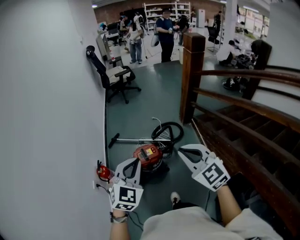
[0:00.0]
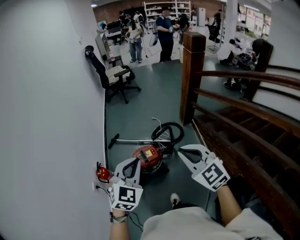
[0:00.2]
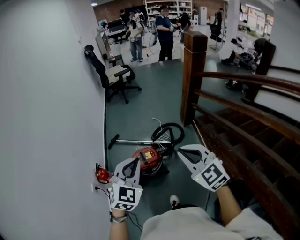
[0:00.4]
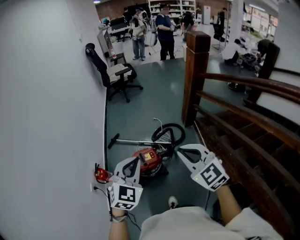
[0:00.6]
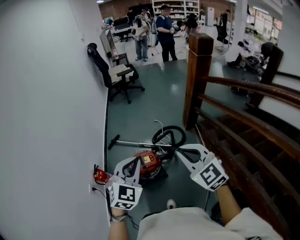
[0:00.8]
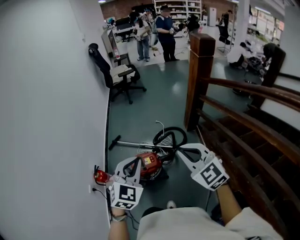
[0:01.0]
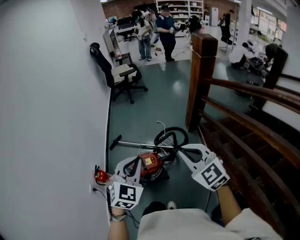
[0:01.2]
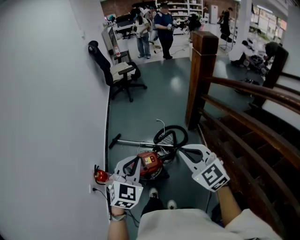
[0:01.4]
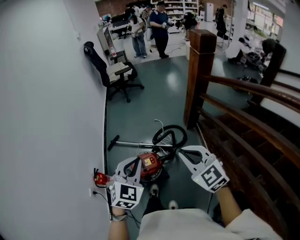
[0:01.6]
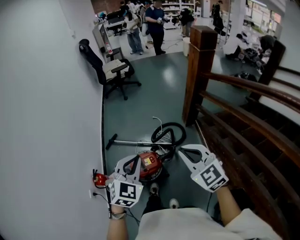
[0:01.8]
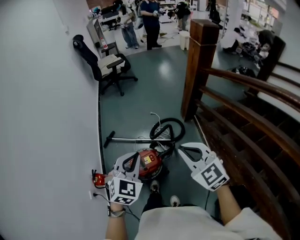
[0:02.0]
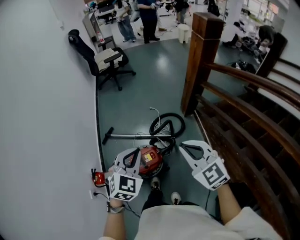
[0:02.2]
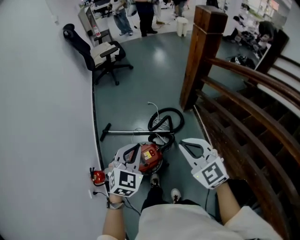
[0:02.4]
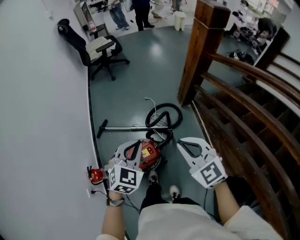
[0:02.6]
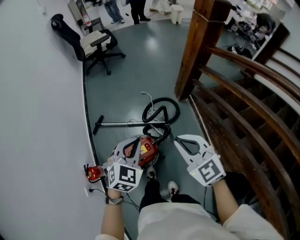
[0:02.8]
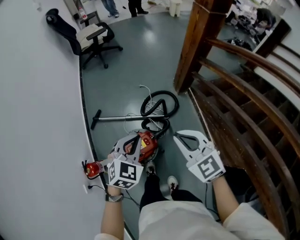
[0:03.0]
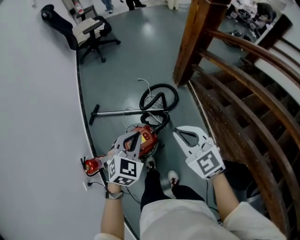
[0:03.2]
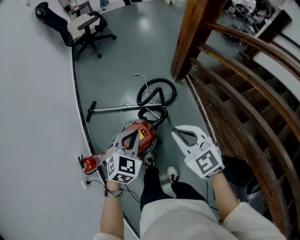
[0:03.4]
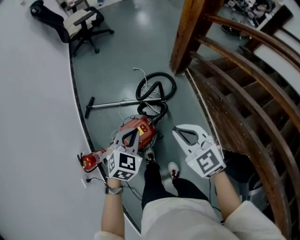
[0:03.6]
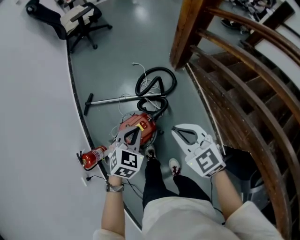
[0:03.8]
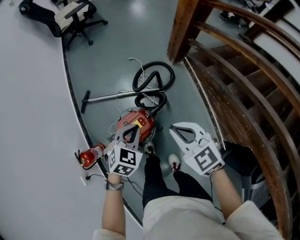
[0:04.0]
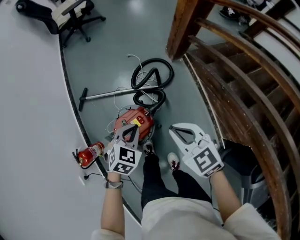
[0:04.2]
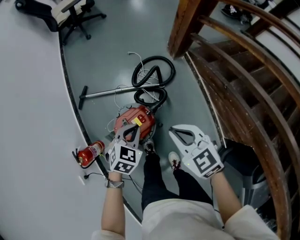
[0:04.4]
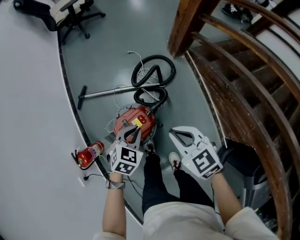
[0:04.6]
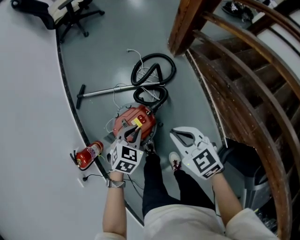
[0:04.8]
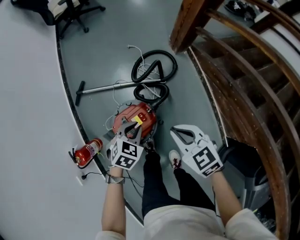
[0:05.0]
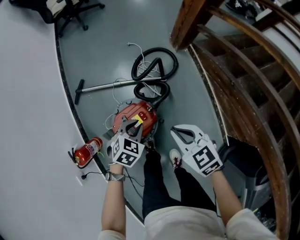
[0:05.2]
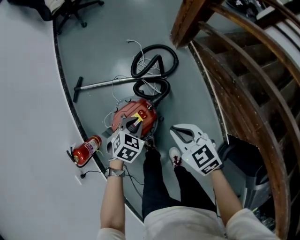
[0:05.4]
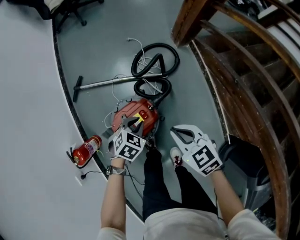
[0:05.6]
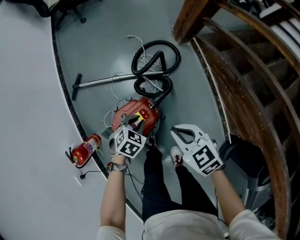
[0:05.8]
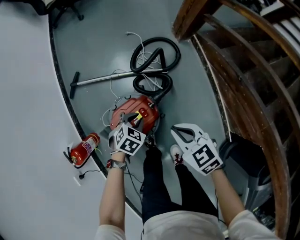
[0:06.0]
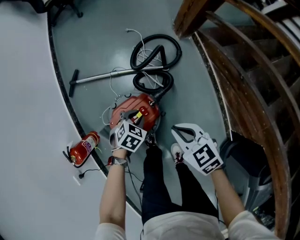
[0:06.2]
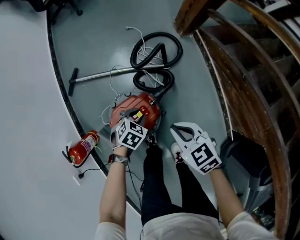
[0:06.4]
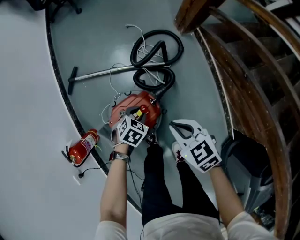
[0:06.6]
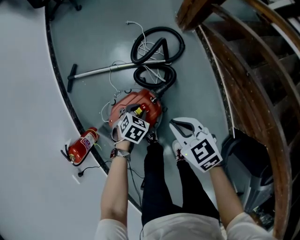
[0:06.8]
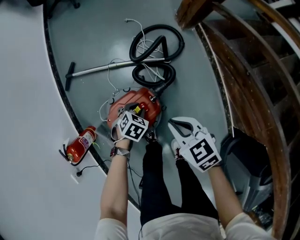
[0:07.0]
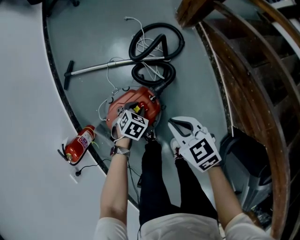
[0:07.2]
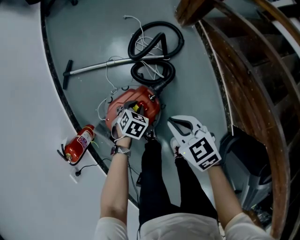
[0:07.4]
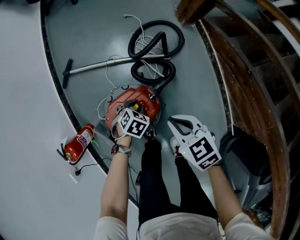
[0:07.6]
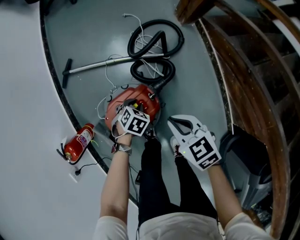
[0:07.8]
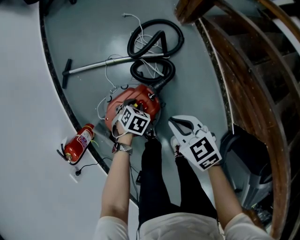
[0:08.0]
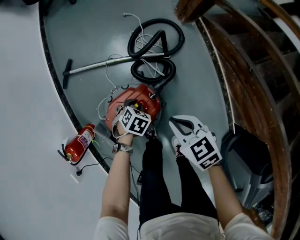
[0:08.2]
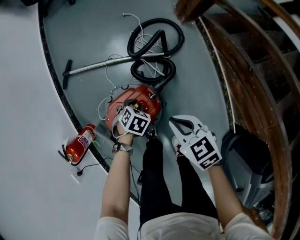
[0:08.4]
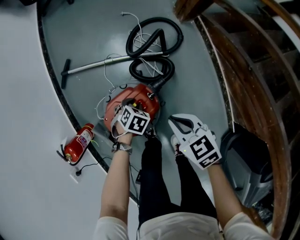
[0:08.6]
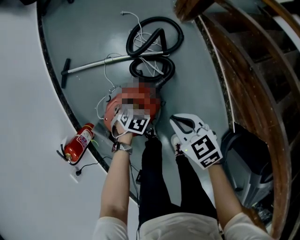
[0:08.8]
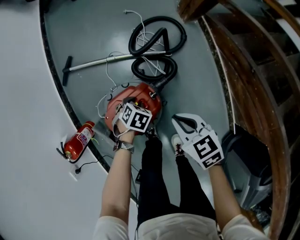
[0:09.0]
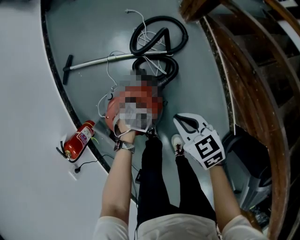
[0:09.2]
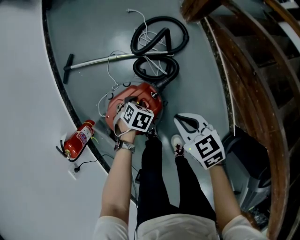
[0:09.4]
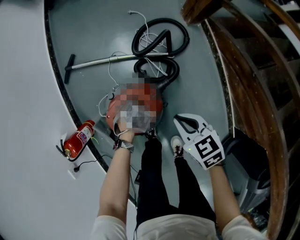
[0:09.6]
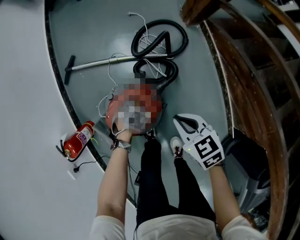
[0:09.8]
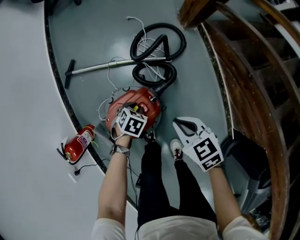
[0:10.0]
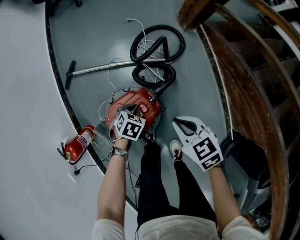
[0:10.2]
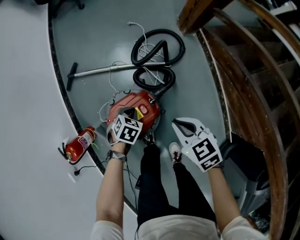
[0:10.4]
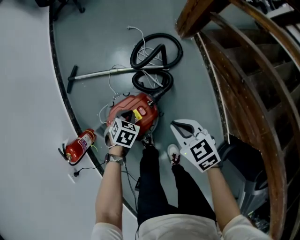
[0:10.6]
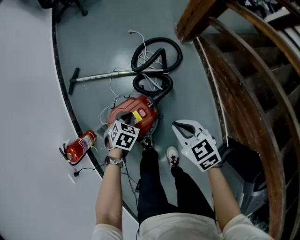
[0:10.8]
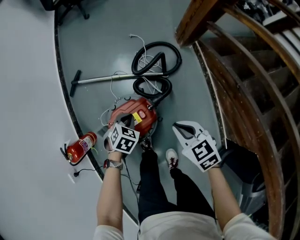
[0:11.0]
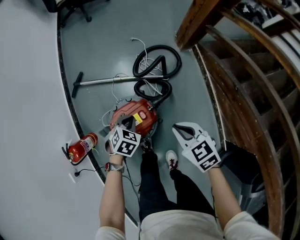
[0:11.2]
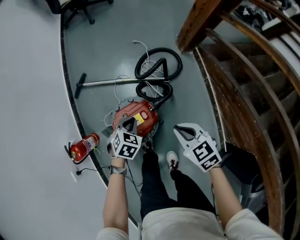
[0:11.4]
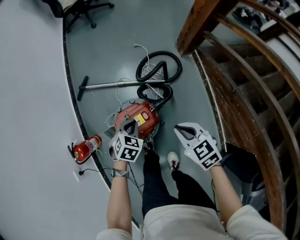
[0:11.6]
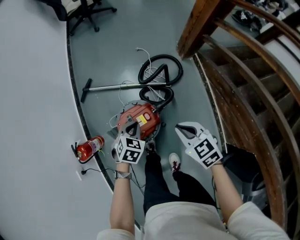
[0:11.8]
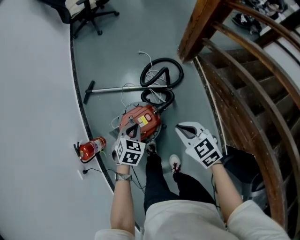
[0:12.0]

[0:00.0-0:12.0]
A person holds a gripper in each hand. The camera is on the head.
0:00.0 to 0:01.6: Both grippers travel together forward and to the right, approximately 15 cm.
0:01.6 to 0:03.0: Both grippers move forward and downward, roughly 20 cm.
0:03.0 to 0:04.4: The two grippers go about 20 cm downward.
0:04.4 to 0:06.0: Both grippers travel together downward, approximately 20 cm.
0:06.0 to 0:07.6: The right gripper heads downward, covering roughly 5 cm, while the left gripper goes about 10 cm downward.
0:07.6 to 0:09.0: The grippers move only a little.
0:09.0 to 0:10.4: The left gripper moves approximately 5 cm, and closes.
0:10.4 to 0:12.0: The right gripper shifts some 15 cm upward; the left gripper goes roughly 20 cm upward.

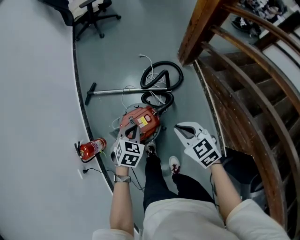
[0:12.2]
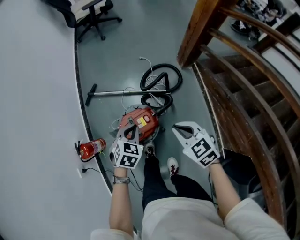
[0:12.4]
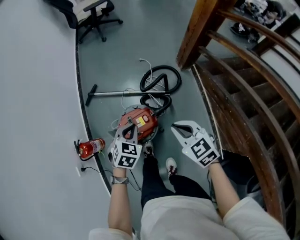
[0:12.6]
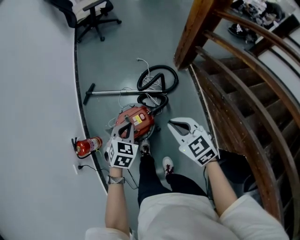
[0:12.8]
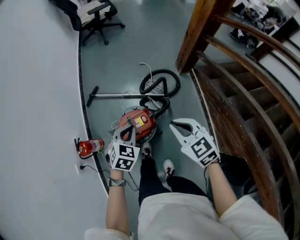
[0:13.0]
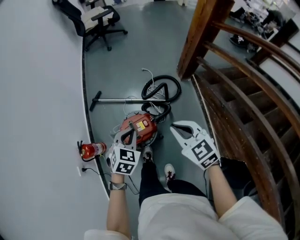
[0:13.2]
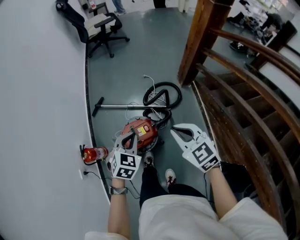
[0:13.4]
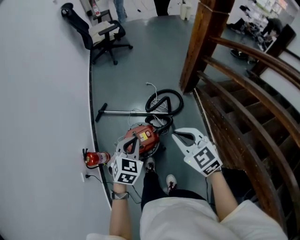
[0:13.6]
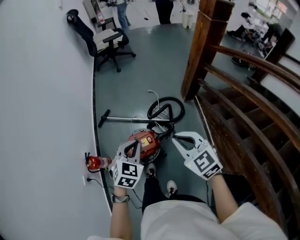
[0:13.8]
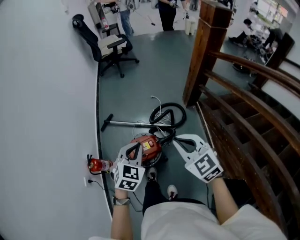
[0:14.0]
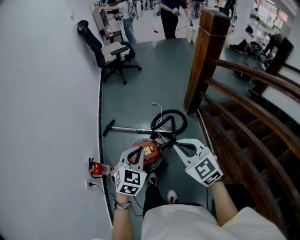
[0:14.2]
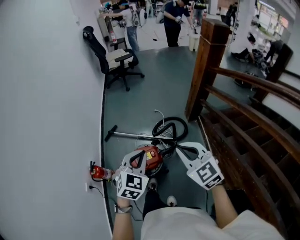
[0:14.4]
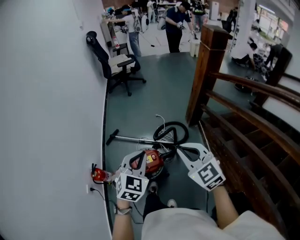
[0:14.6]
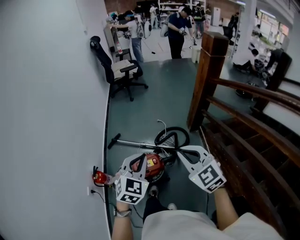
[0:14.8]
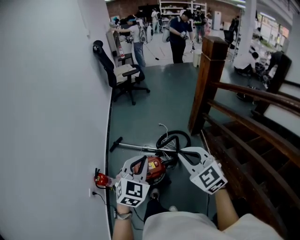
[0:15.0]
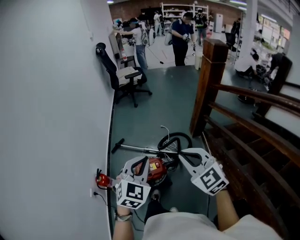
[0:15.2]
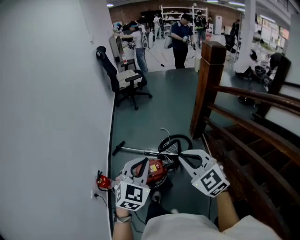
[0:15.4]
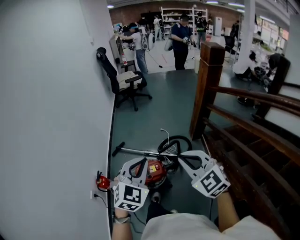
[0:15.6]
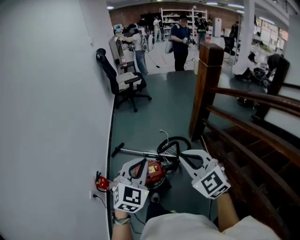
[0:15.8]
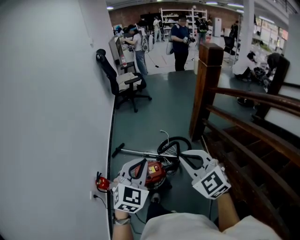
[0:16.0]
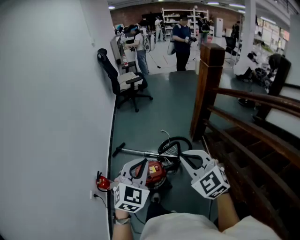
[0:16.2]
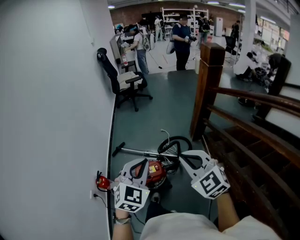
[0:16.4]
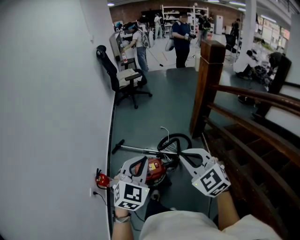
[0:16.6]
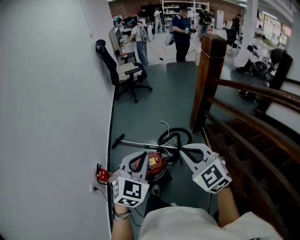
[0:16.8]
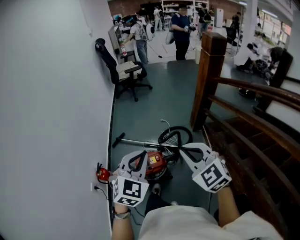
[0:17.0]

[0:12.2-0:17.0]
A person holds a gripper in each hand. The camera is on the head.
0:12.2 to 0:13.8: The grippers both shift upward by some 20 cm. The right gripper swivels approximately 20 degrees.
0:13.8 to 0:15.4: Both grippers move upward and backward, some 20 cm. The left gripper swivels approximately 20 degrees.
0:15.4 to 0:17.0: The grippers stay close to where they were, moving slightly.

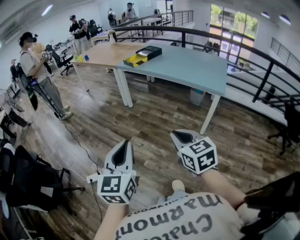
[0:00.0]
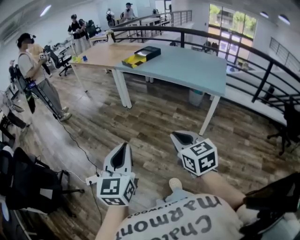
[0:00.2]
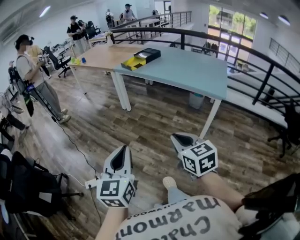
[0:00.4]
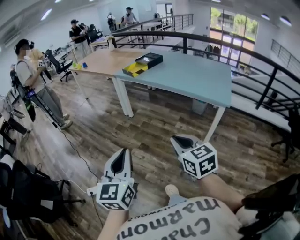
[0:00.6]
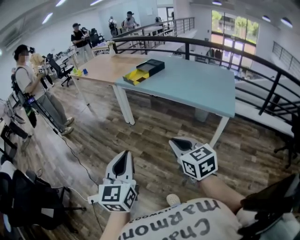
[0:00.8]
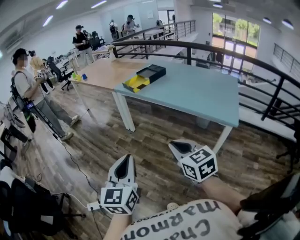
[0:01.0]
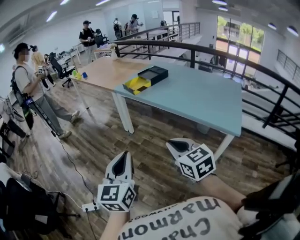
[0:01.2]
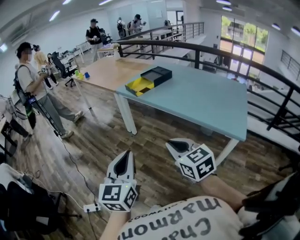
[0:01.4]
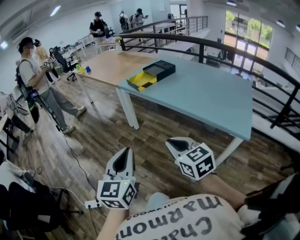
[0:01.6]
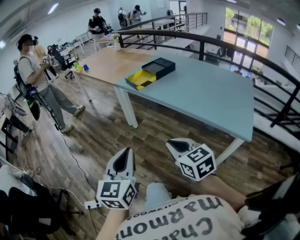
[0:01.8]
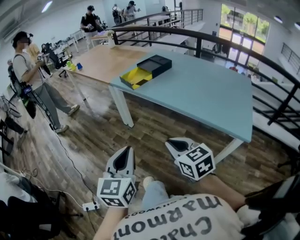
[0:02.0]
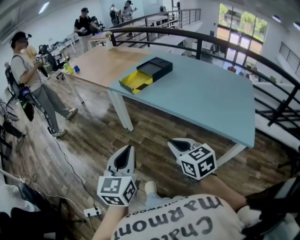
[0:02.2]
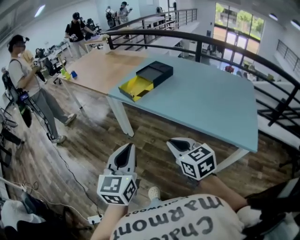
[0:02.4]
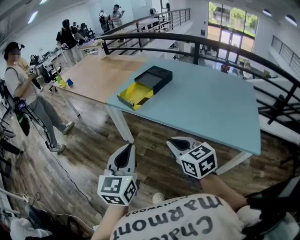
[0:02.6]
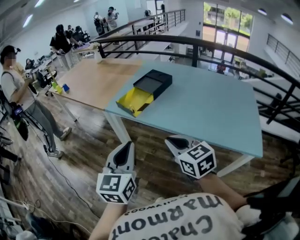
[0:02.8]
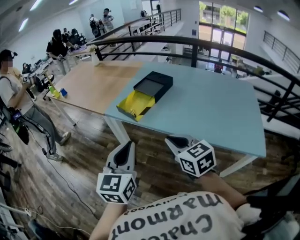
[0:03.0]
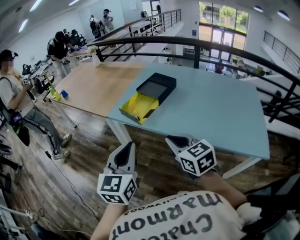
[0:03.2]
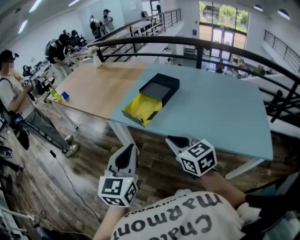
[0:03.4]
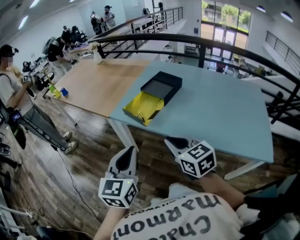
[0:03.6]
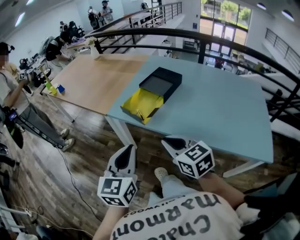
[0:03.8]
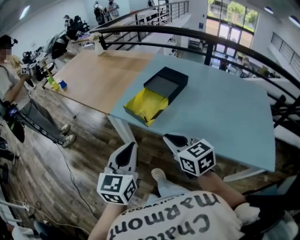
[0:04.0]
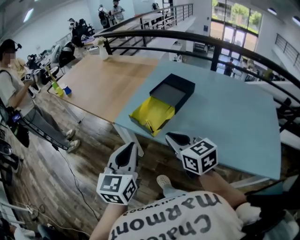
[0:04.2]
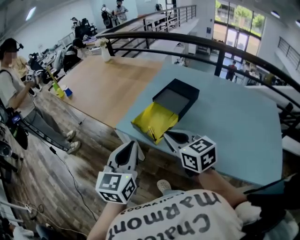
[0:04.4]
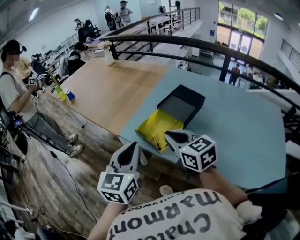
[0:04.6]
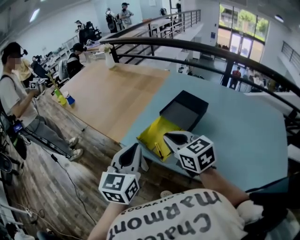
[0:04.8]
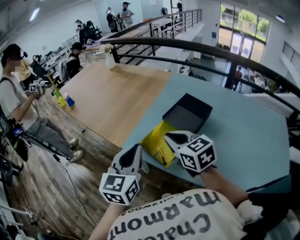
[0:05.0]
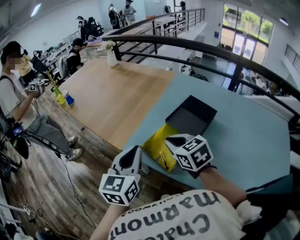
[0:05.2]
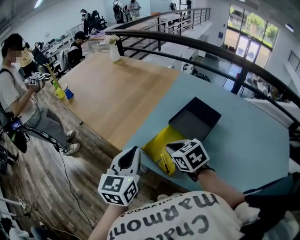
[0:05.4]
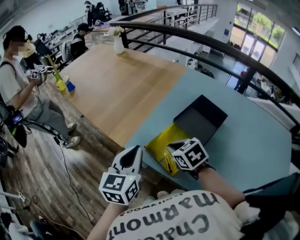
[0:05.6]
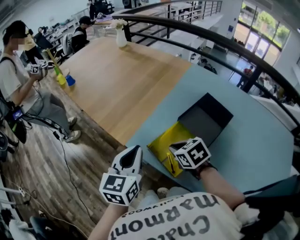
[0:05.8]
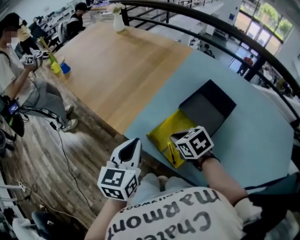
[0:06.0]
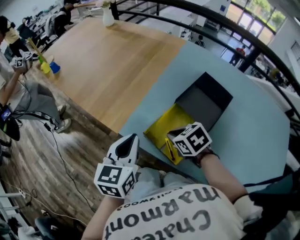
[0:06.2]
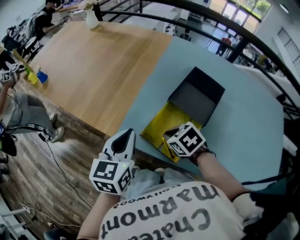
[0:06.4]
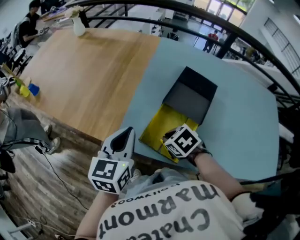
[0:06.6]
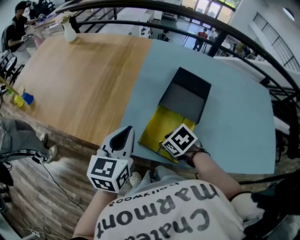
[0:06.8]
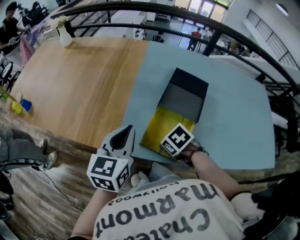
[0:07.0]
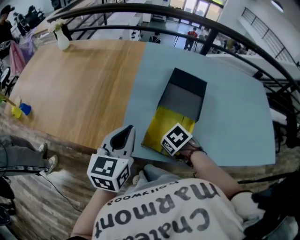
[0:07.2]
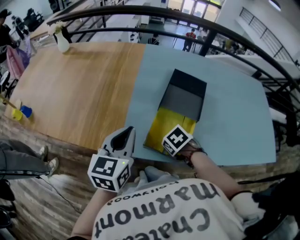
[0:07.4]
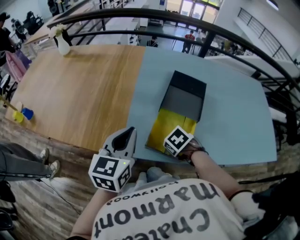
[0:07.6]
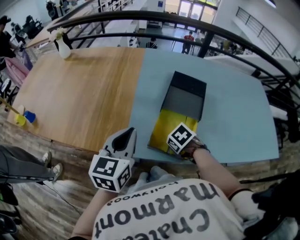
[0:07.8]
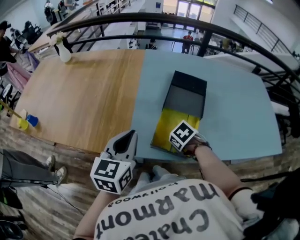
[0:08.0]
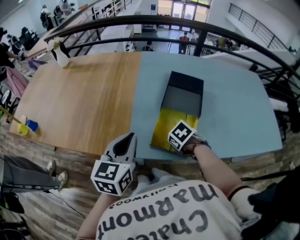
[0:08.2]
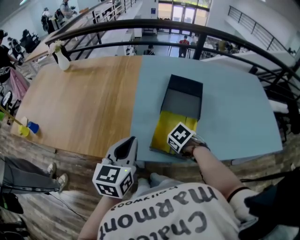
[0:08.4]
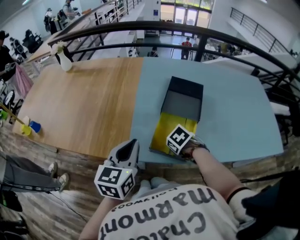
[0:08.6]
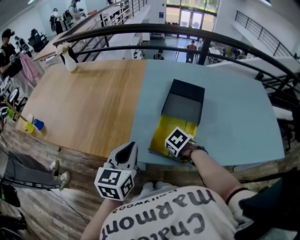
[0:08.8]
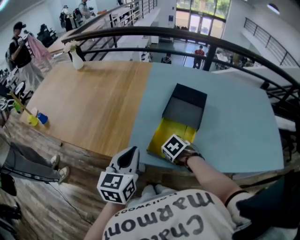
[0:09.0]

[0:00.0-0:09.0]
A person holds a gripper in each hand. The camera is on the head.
0:00.0 to 0:01.6: Both grippers travel together forward, approximately 30 cm.
0:01.6 to 0:03.0: The grippers both shift forward by roughly 30 cm.
0:03.0 to 0:04.4: The grippers both shift forward by roughly 20 cm.
0:04.4 to 0:06.0: Both grippers move forward and downward, some 25 cm. The right gripper tips its fingers downward by about 40 degrees.
0:06.0 to 0:07.6: The left gripper changes place by some 10 cm, and changes its angle by roughly 30 degrees. The right gripper shifts roughly 5 cm downward, and rotates about 30 degrees.
0:07.6 to 0:09.0: The left gripper ends up some 5 cm from where it was.
